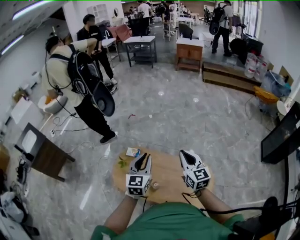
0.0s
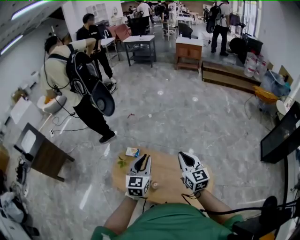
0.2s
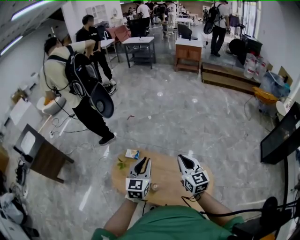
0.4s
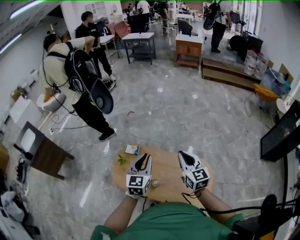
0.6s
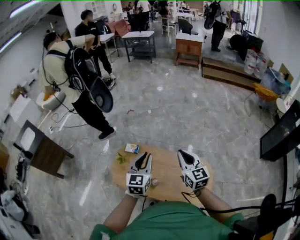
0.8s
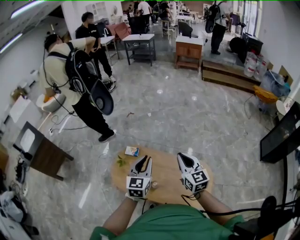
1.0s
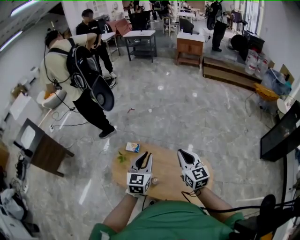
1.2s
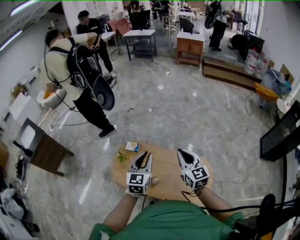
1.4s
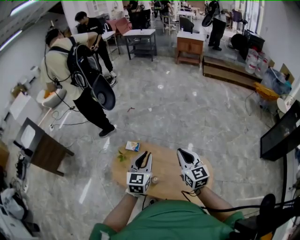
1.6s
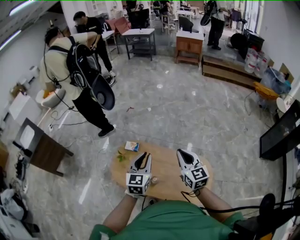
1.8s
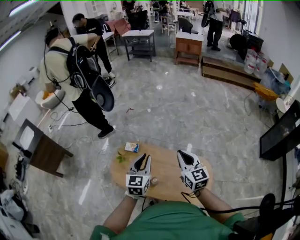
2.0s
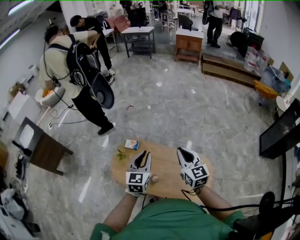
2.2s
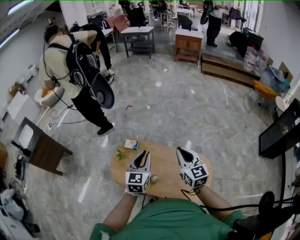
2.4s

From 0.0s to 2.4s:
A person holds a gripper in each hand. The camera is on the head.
From 0.0s to 2.4s: The grippers make only small movements.

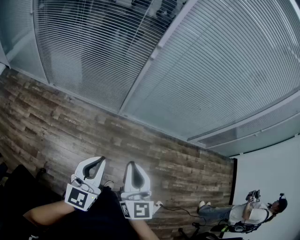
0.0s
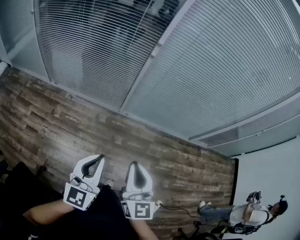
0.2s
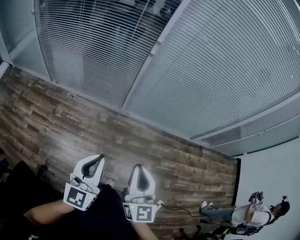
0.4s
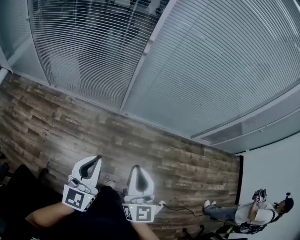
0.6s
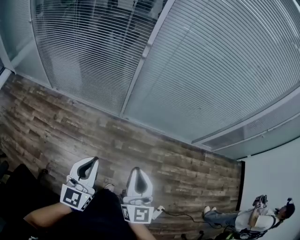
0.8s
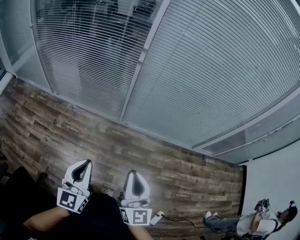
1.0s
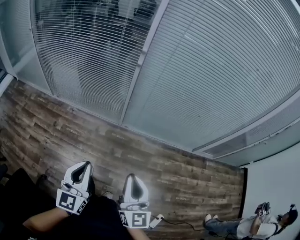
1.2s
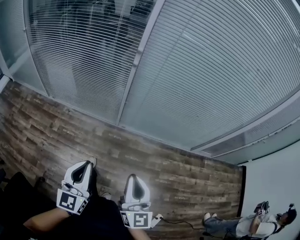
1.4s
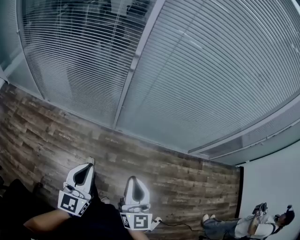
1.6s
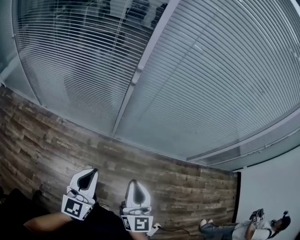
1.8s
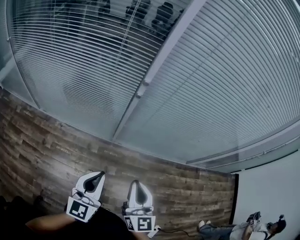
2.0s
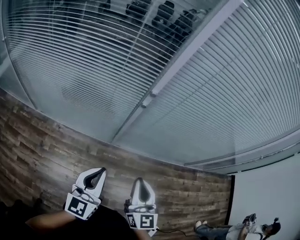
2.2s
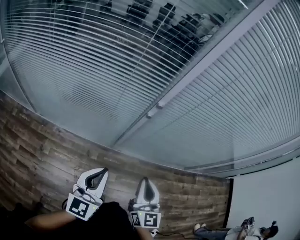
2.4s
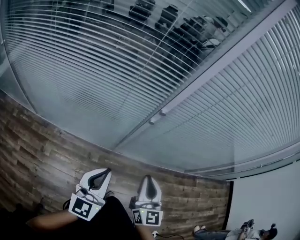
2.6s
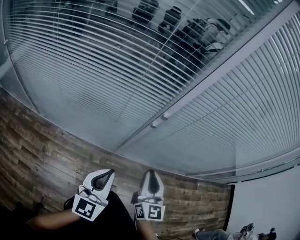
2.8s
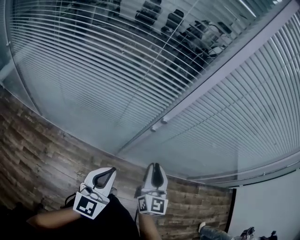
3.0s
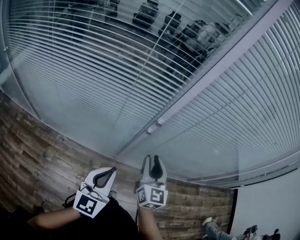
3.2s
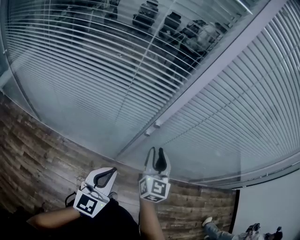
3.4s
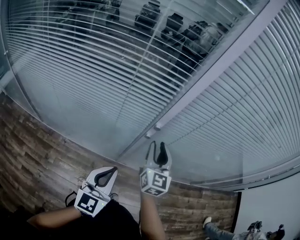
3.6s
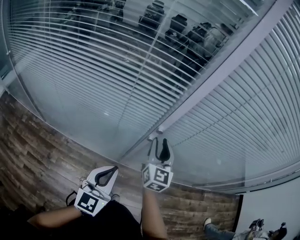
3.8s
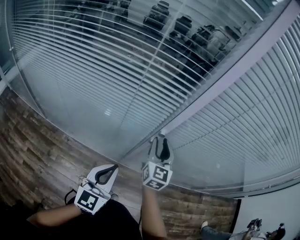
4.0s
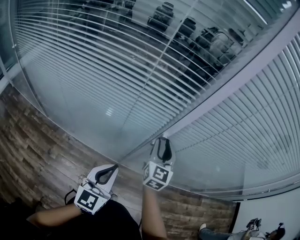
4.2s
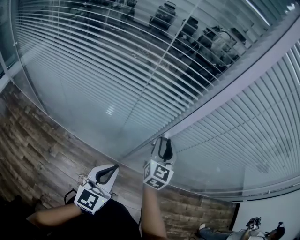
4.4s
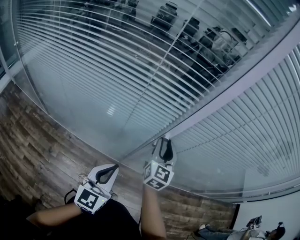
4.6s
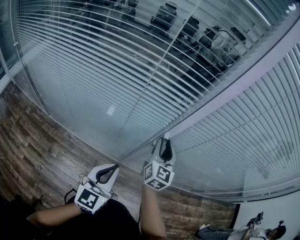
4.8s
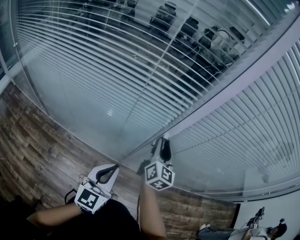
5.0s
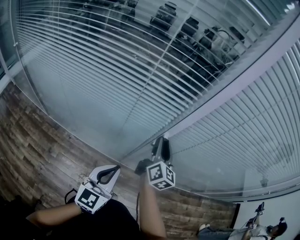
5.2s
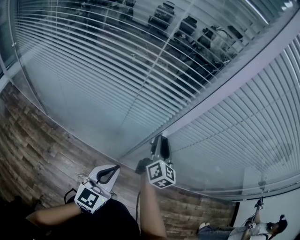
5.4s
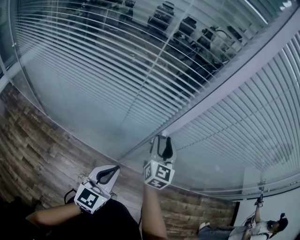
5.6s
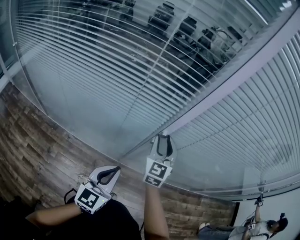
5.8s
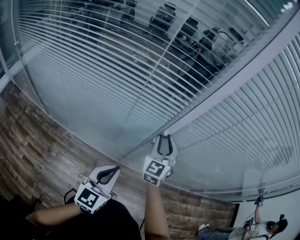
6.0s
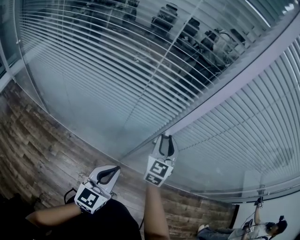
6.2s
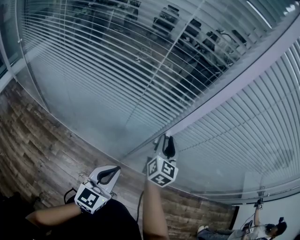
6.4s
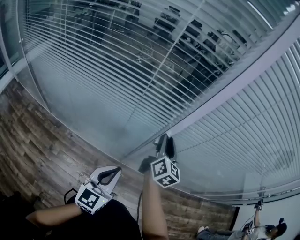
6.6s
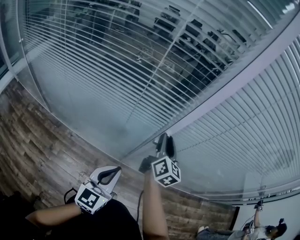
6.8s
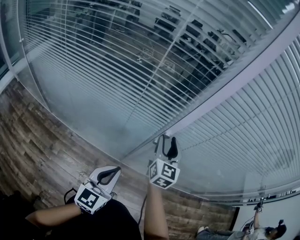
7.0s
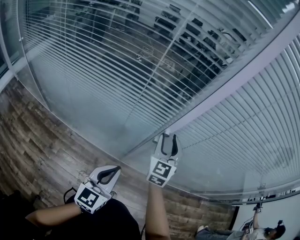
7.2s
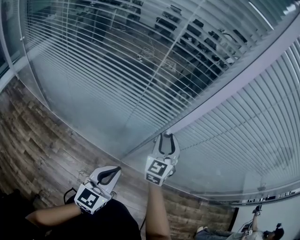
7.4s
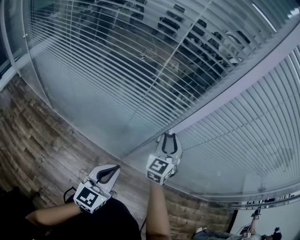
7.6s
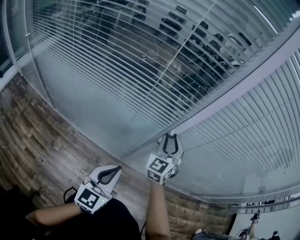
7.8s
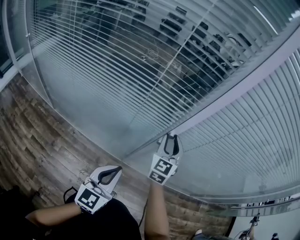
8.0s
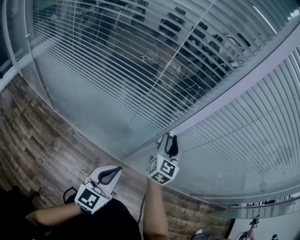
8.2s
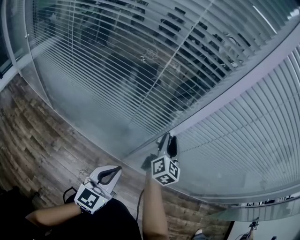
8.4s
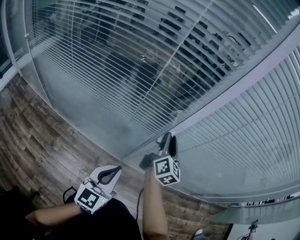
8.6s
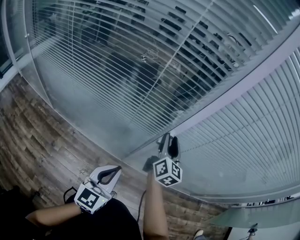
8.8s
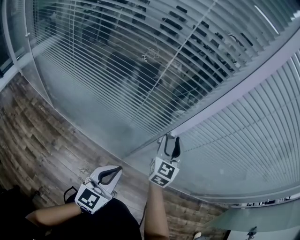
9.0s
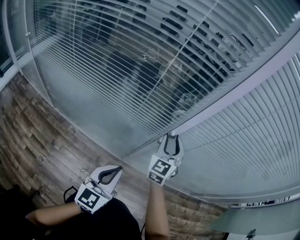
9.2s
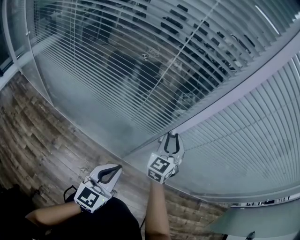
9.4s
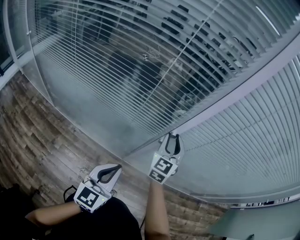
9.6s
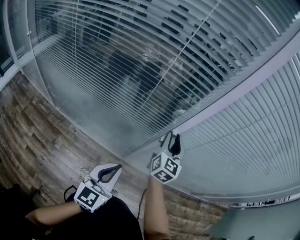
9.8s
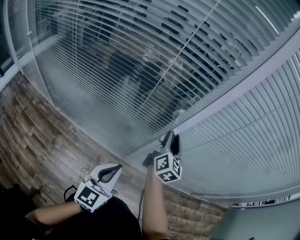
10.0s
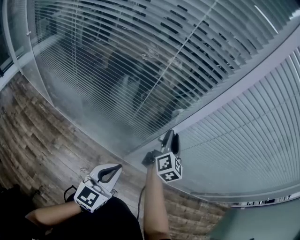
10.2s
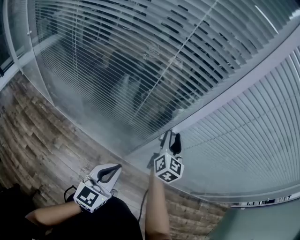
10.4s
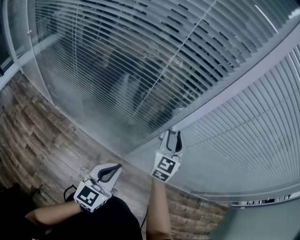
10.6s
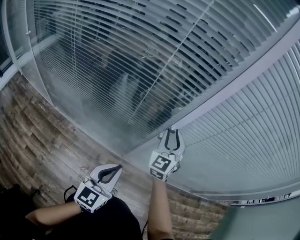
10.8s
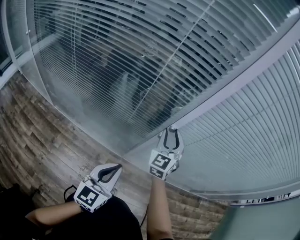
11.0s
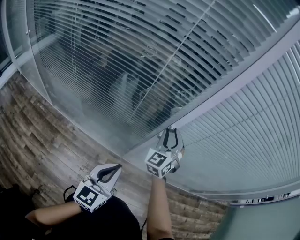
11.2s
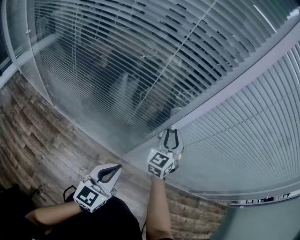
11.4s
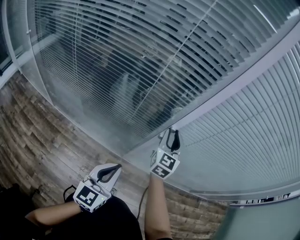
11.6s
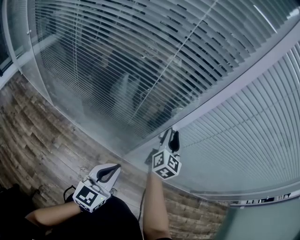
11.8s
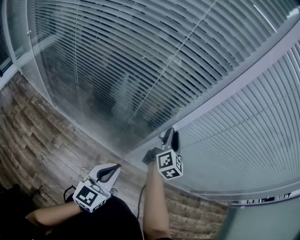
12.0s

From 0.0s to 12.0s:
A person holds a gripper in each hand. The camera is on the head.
From 0.0s to 1.6s: The left gripper travels forward and to the right by roughly 10 cm. The right gripper travels to the right and forward by about 15 cm.
From 1.6s to 3.0s: The grippers both shift forward by about 30 cm.
From 3.0s to 4.4s: The left gripper shifts some 10 cm forward; the right gripper goes about 20 cm forward.
From 4.4s to 6.0s: The right gripper swivels roughly 20 degrees.
From 9.0s to 10.4s: The right gripper swivels some 20 degrees.

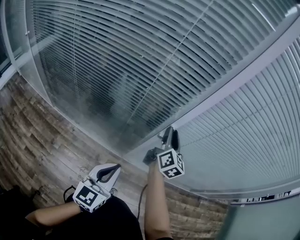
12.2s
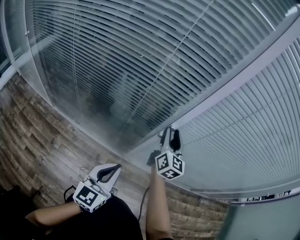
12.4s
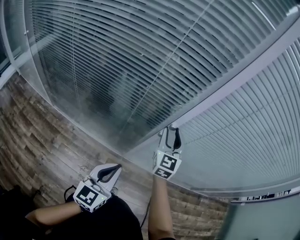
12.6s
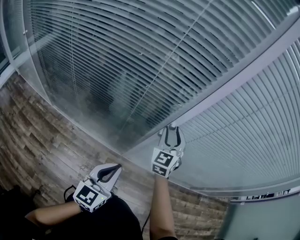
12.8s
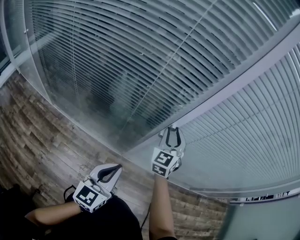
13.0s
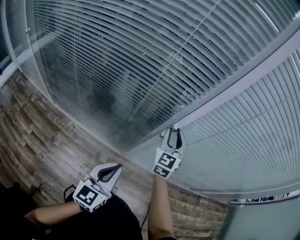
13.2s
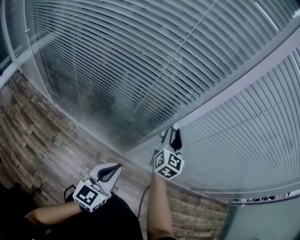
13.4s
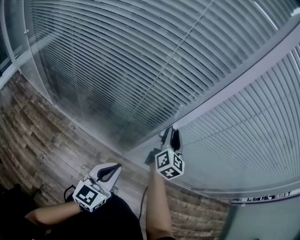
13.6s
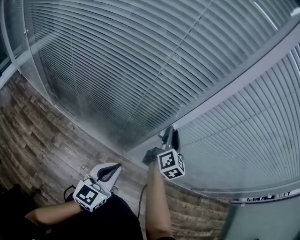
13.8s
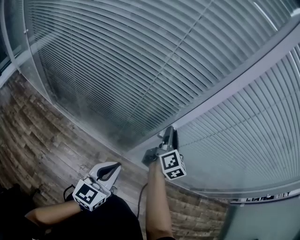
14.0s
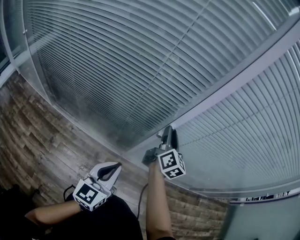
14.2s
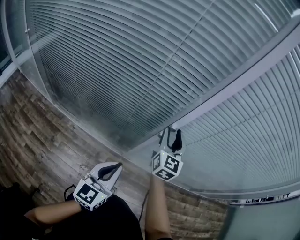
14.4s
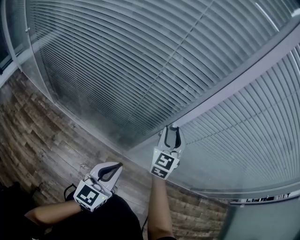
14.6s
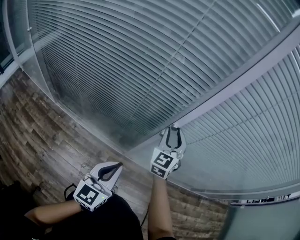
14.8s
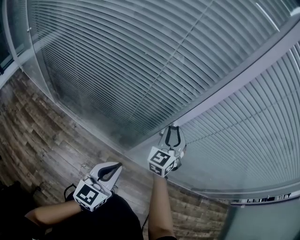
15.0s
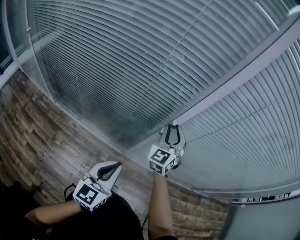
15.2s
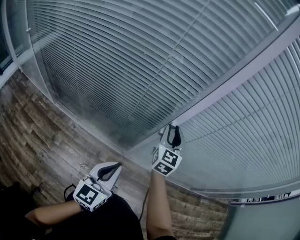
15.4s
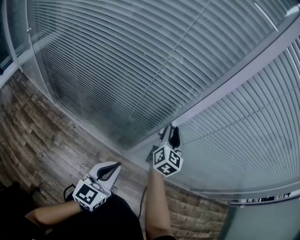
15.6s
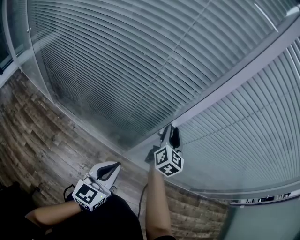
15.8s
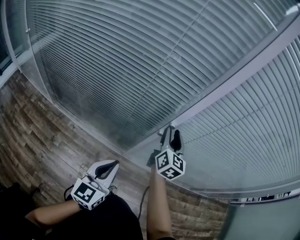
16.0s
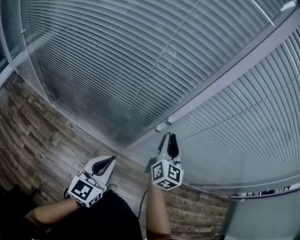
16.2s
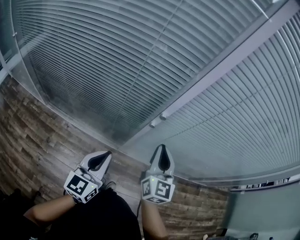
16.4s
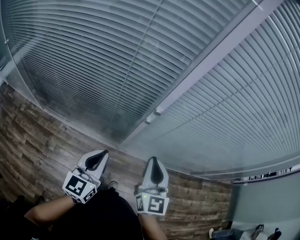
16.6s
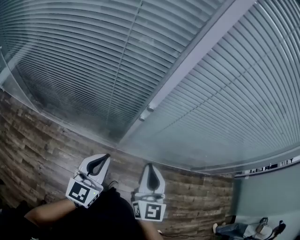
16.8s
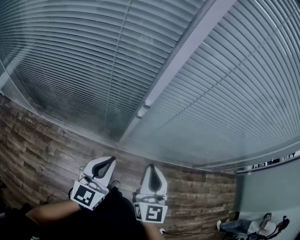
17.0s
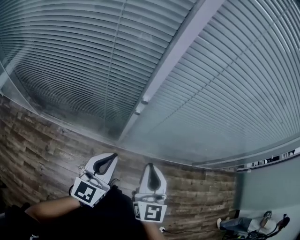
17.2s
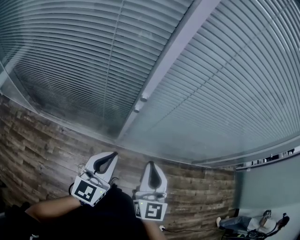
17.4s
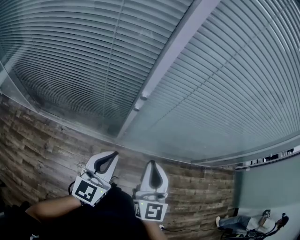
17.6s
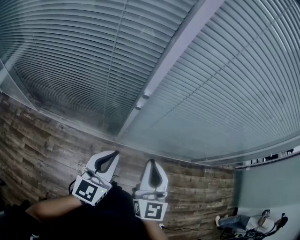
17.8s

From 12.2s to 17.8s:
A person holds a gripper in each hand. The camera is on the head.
From 13.6s to 15.0s: The right gripper rotates around the line of its fingers by roughly 50 degrees, counterclockwise from behind.
From 15.0s to 16.4s: The right gripper shifts some 10 cm backward, turns by approximately 40 degrees, and closes up.
From 16.4s to 17.8s: The left gripper travels to the right by about 5 cm, while the right gripper shifts approximately 10 cm backward.

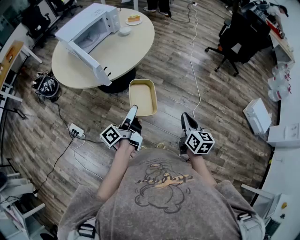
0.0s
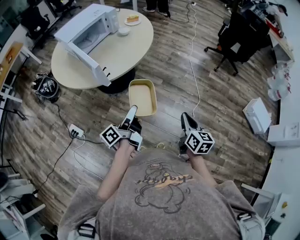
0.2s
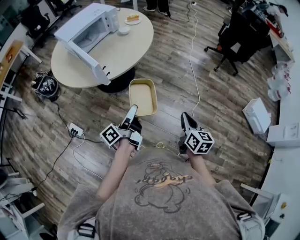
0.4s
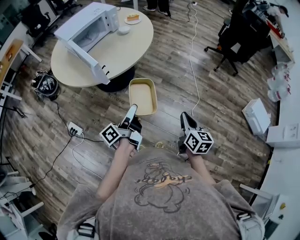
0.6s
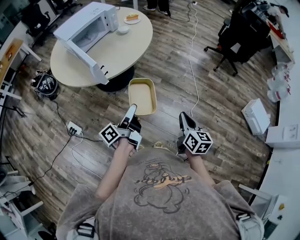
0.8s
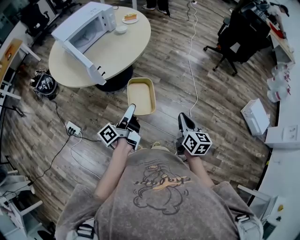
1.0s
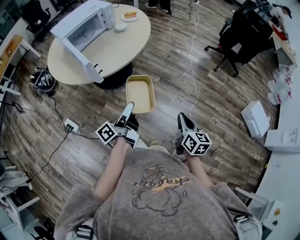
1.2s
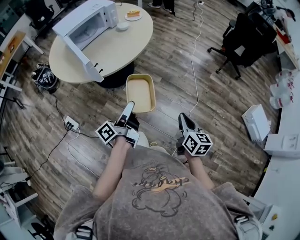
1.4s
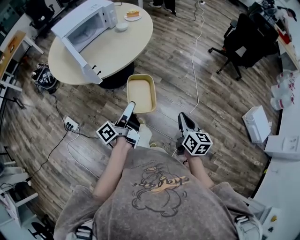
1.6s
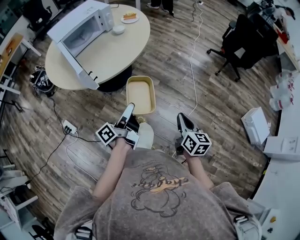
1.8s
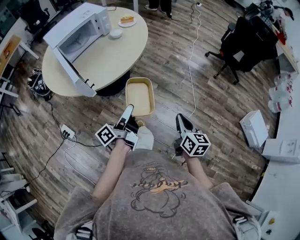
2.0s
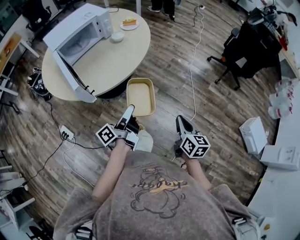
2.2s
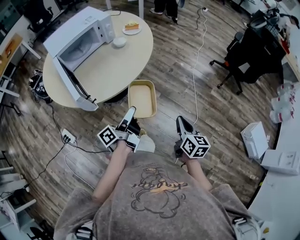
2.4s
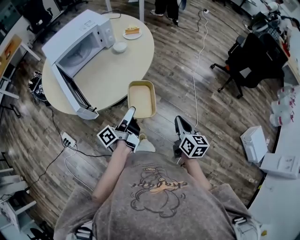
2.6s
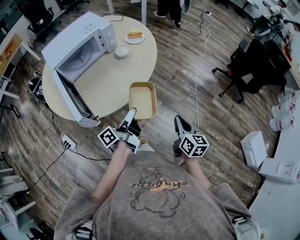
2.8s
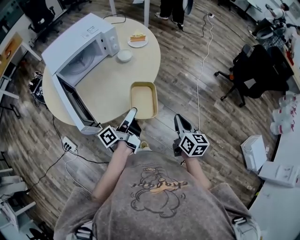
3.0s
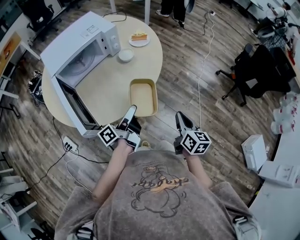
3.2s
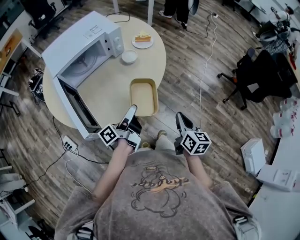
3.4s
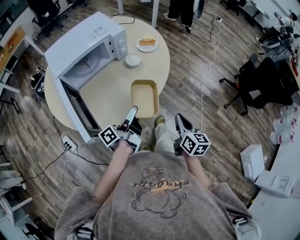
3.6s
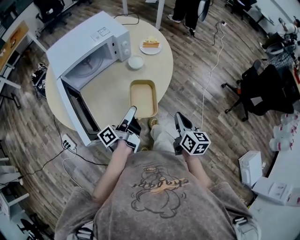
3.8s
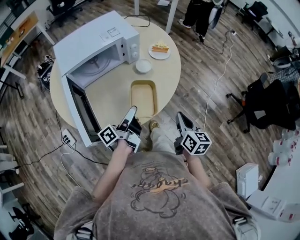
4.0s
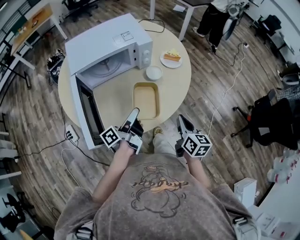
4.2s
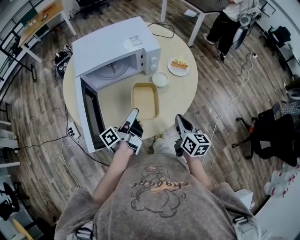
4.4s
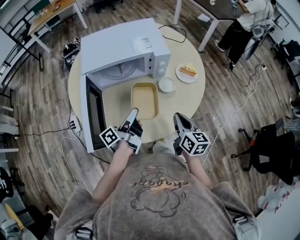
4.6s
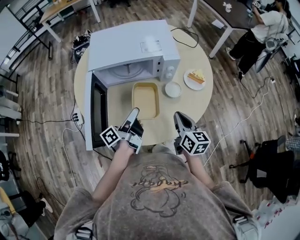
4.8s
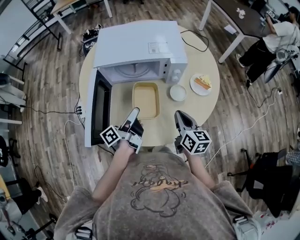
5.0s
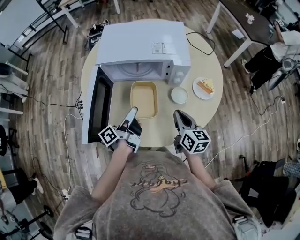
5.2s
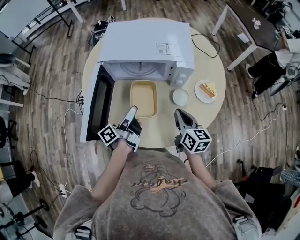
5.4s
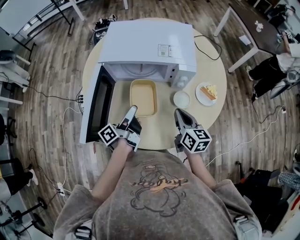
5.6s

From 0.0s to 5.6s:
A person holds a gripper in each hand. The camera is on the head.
From 0.0s to 1.4s: The left gripper ends up about 5 cm from where it was, while the right gripper moves about 5 cm.
From 1.4s to 2.8s: Both grippers move forward, roughly 25 cm.
From 2.8s to 4.2s: Both grippers move forward and to the left, approximately 20 cm.
From 4.2s to 5.6s: The left gripper changes place by about 10 cm, and rotates roughly 30 degrees. Meanwhile the right gripper shifts by about 20 cm, and turns by roughly 40 degrees.
